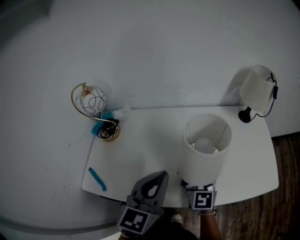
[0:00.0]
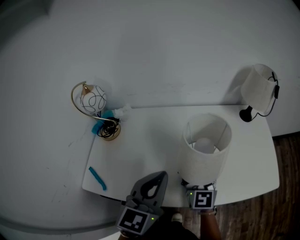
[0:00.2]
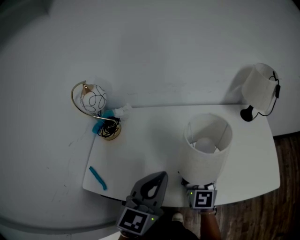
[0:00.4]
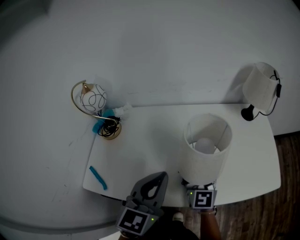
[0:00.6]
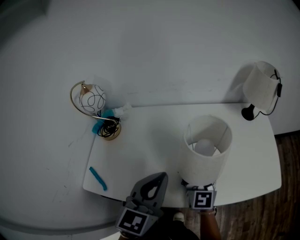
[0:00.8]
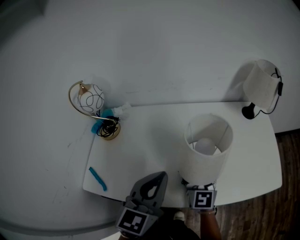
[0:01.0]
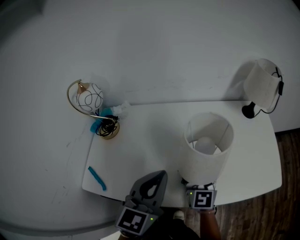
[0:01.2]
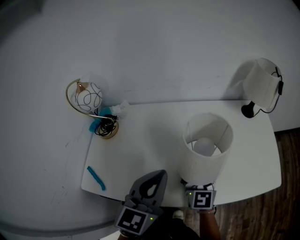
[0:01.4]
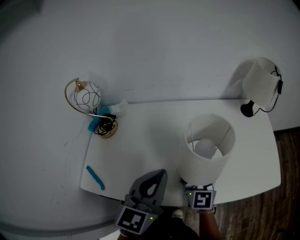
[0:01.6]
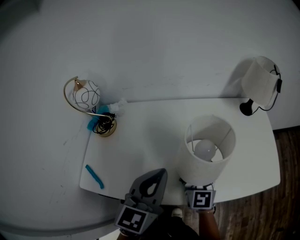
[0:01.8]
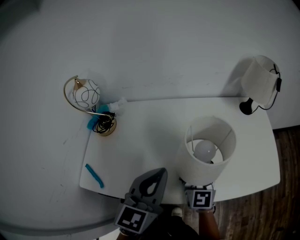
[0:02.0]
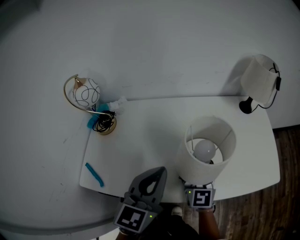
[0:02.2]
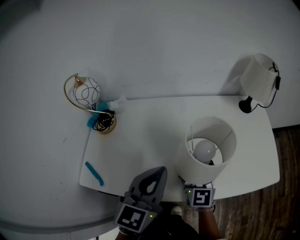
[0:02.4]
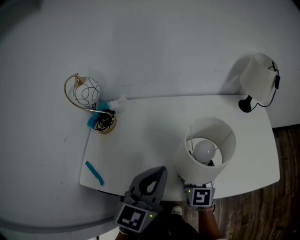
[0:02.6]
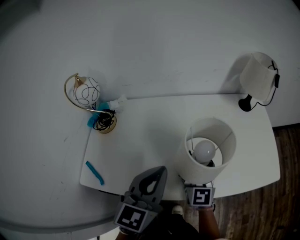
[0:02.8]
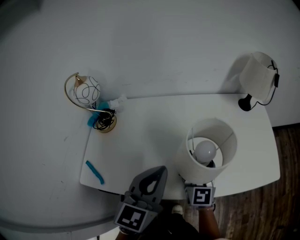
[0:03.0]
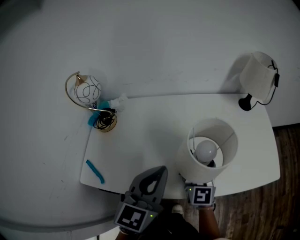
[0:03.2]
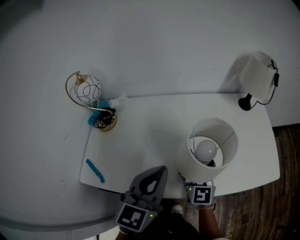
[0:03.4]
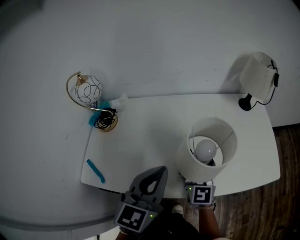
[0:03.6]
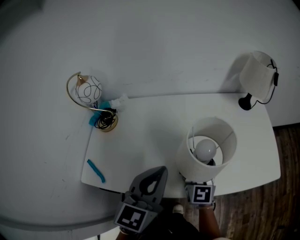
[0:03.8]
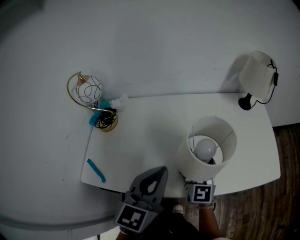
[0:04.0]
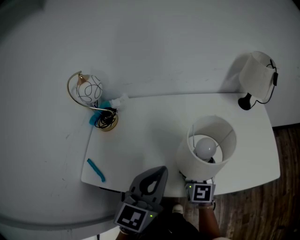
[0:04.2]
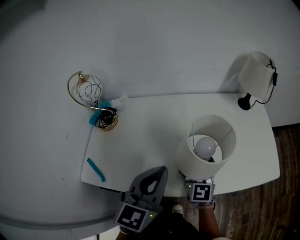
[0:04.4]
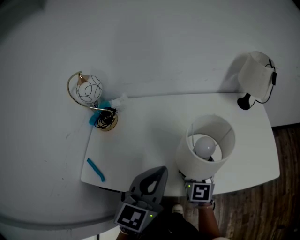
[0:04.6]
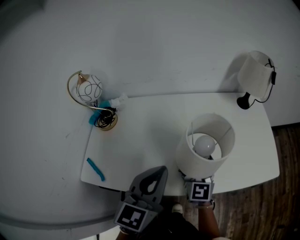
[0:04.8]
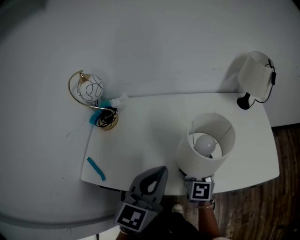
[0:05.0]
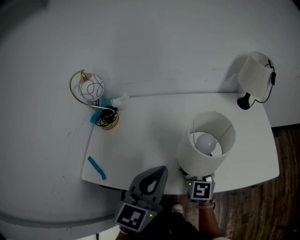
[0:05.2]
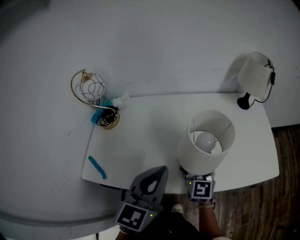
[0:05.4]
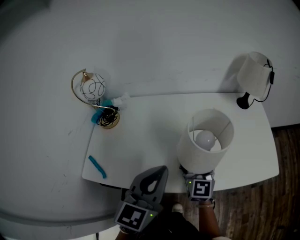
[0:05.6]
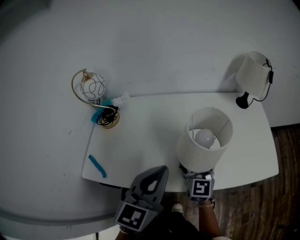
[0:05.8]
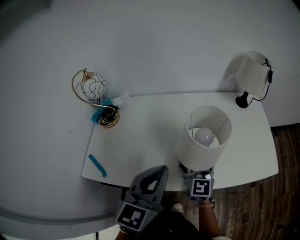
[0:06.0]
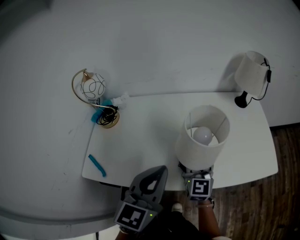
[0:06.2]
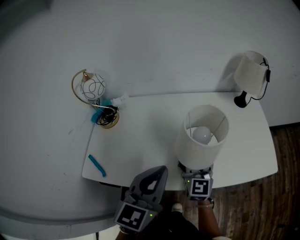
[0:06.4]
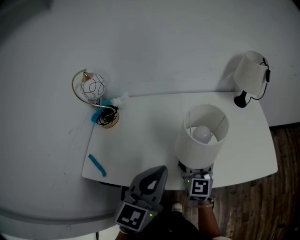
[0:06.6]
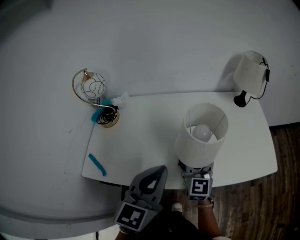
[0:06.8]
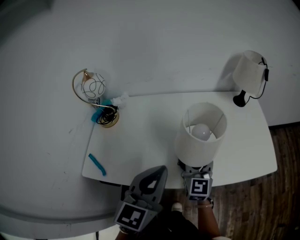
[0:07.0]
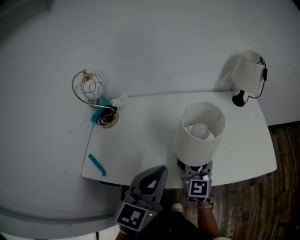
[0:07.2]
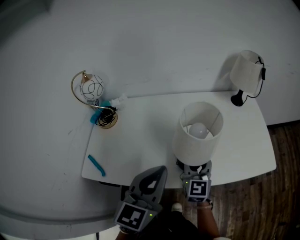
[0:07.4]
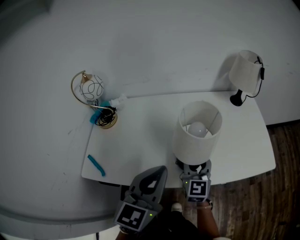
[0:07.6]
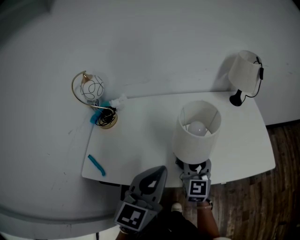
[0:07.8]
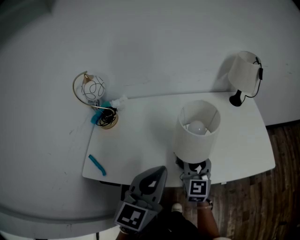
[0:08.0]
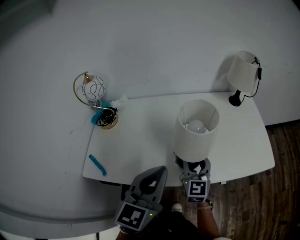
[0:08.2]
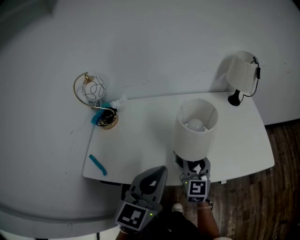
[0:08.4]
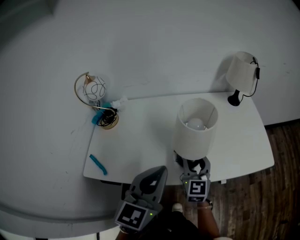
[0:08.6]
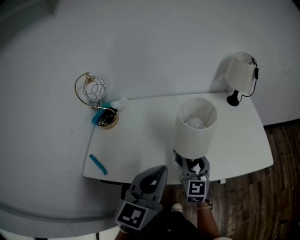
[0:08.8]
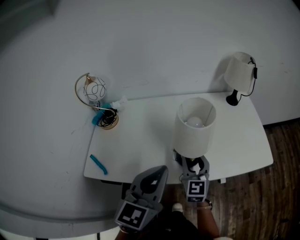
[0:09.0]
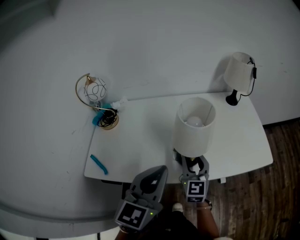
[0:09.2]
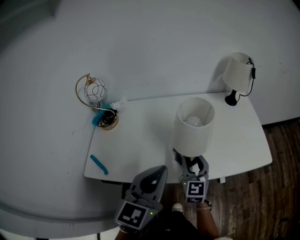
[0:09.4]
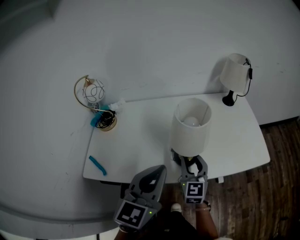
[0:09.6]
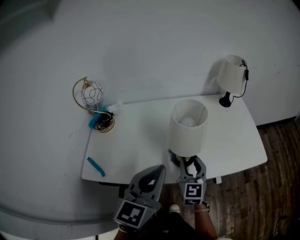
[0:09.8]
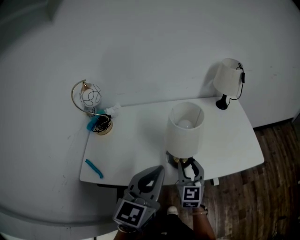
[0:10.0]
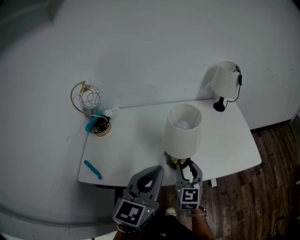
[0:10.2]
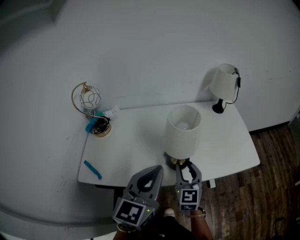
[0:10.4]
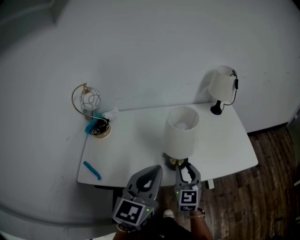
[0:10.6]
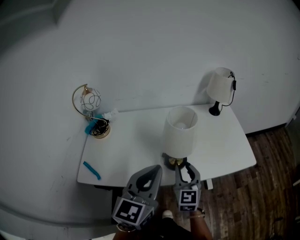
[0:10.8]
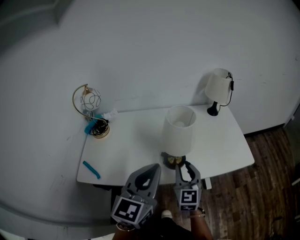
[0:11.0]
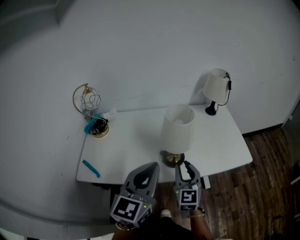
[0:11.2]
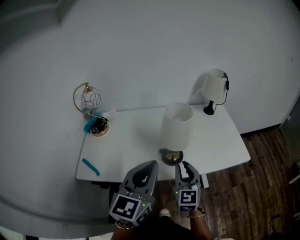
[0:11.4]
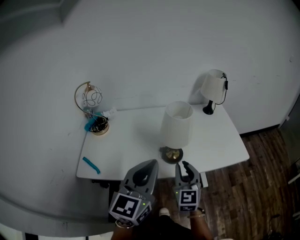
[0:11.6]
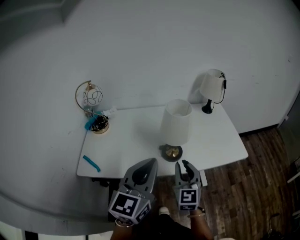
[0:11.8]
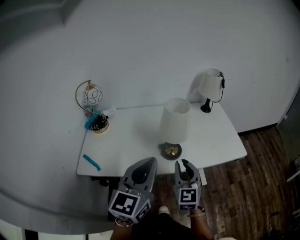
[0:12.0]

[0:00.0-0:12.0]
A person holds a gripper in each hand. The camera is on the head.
0:00.0 to 0:06.0: The grippers make only small movements.
0:06.0 to 0:09.0: The grippers make only small movements.
0:09.0 to 0:10.4: The right gripper ends up approximately 5 cm from where it was.
0:10.4 to 0:12.0: The right gripper shifts about 10 cm backward and upward, while the left gripper shifts some 10 cm backward.

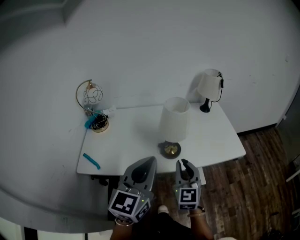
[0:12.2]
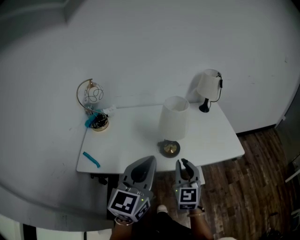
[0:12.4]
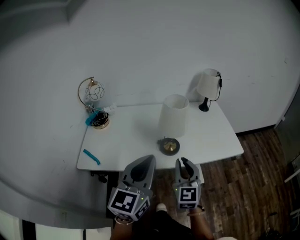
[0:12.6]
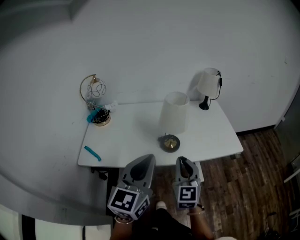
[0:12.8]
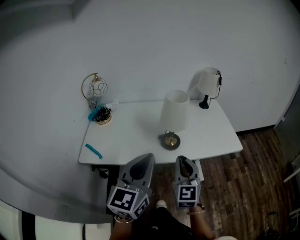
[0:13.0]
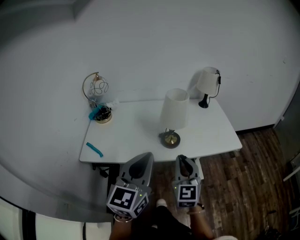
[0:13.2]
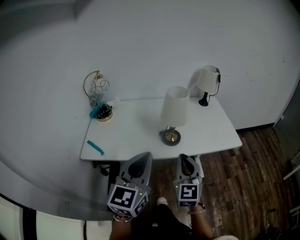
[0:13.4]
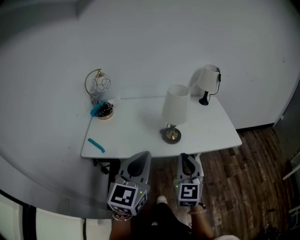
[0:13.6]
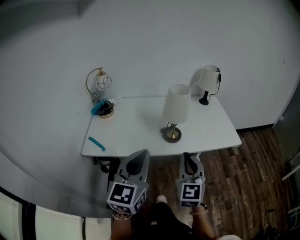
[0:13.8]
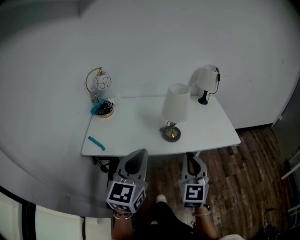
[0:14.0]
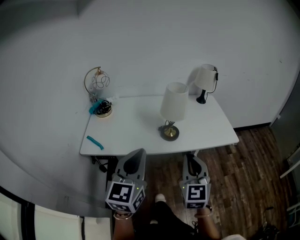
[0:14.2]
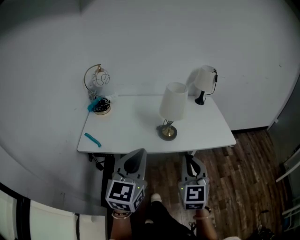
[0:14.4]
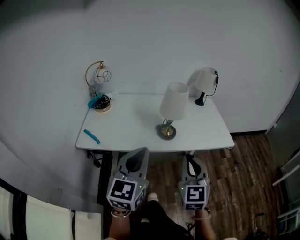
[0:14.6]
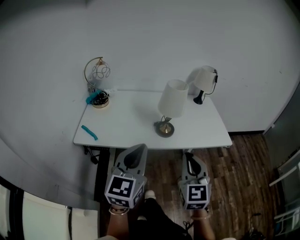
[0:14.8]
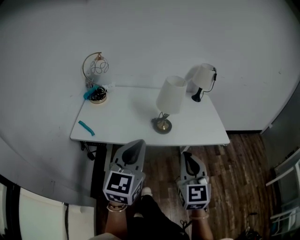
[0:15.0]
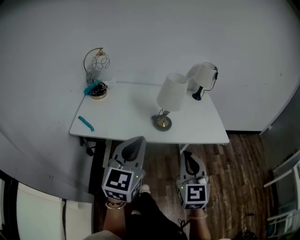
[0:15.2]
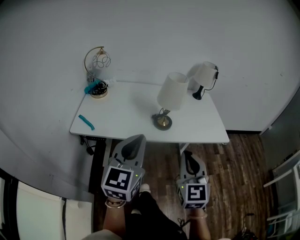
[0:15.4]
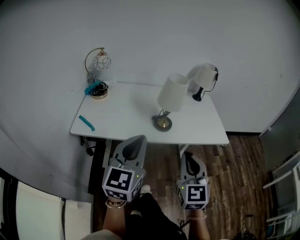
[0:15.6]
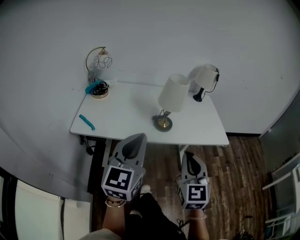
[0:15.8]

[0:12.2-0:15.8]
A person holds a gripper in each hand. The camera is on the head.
0:12.2 to 0:14.0: Both grippers move backward, roughly 10 cm.
0:14.0 to 0:15.8: The right gripper changes place by about 5 cm.

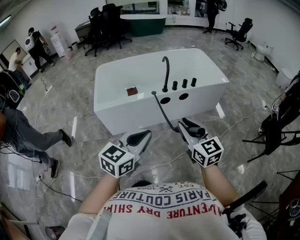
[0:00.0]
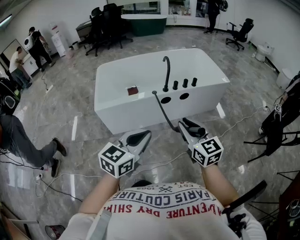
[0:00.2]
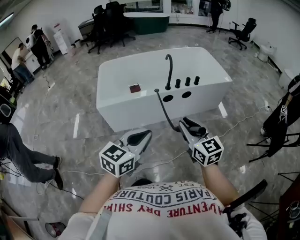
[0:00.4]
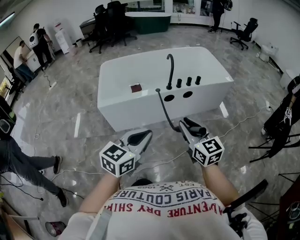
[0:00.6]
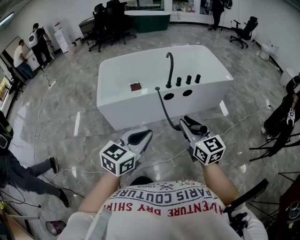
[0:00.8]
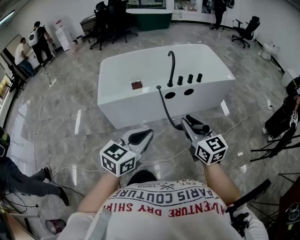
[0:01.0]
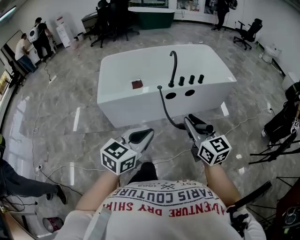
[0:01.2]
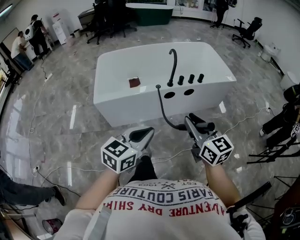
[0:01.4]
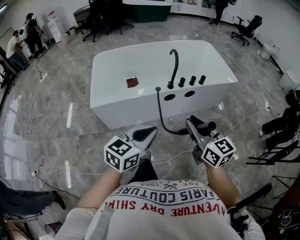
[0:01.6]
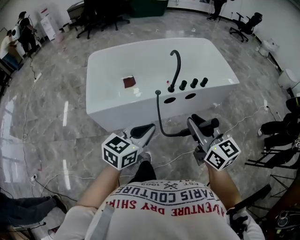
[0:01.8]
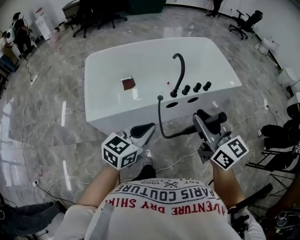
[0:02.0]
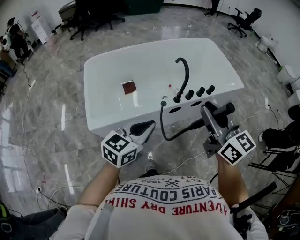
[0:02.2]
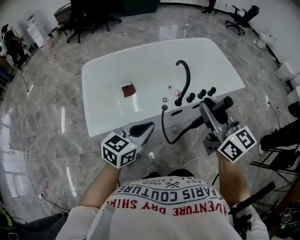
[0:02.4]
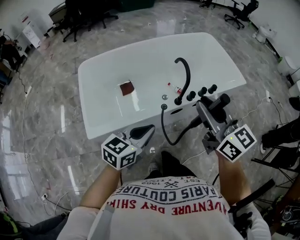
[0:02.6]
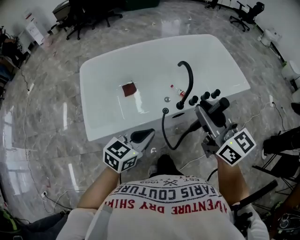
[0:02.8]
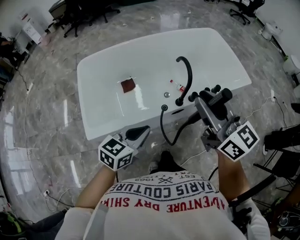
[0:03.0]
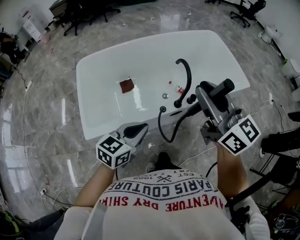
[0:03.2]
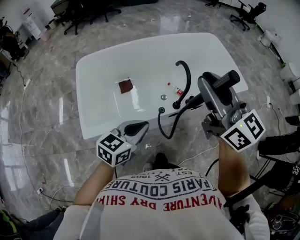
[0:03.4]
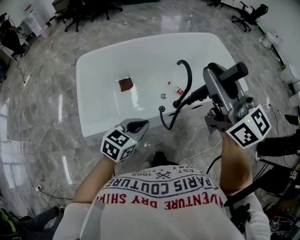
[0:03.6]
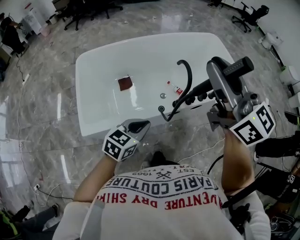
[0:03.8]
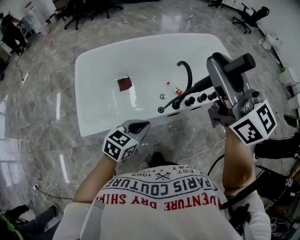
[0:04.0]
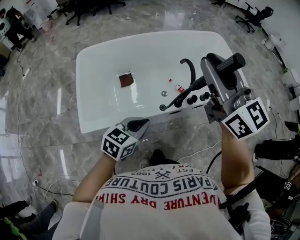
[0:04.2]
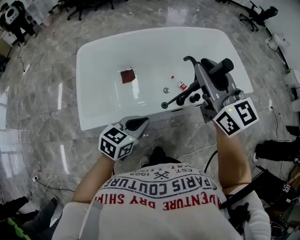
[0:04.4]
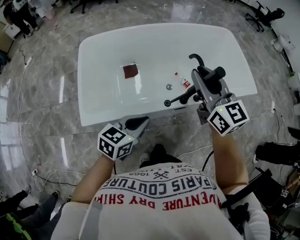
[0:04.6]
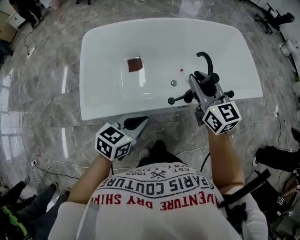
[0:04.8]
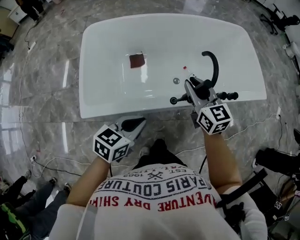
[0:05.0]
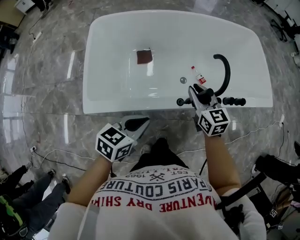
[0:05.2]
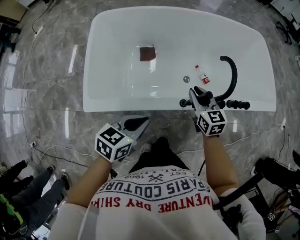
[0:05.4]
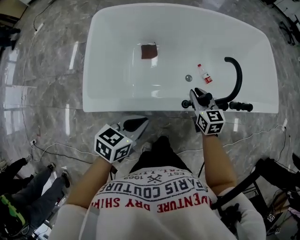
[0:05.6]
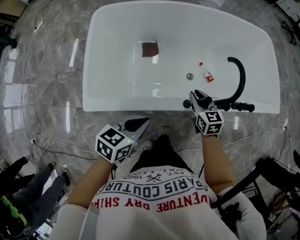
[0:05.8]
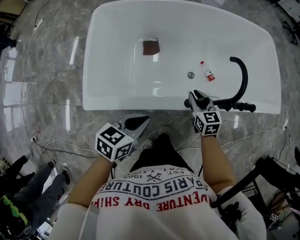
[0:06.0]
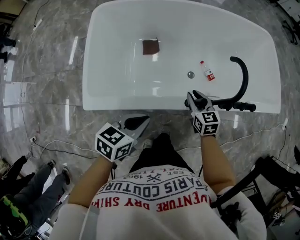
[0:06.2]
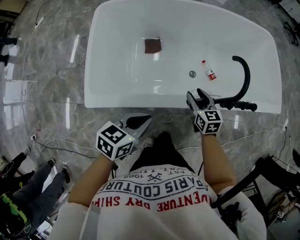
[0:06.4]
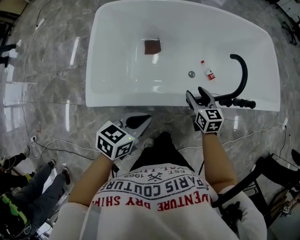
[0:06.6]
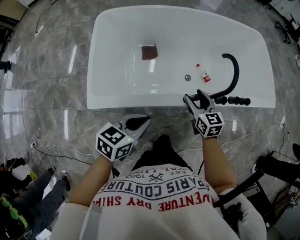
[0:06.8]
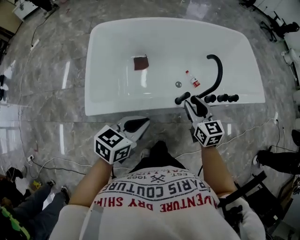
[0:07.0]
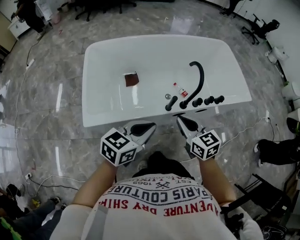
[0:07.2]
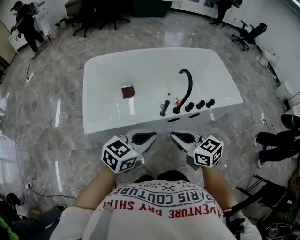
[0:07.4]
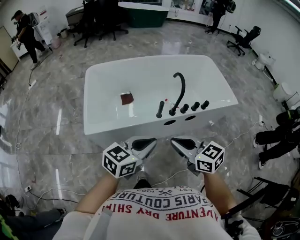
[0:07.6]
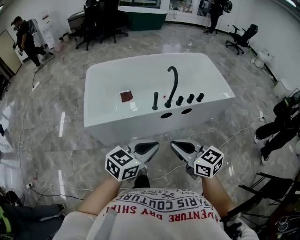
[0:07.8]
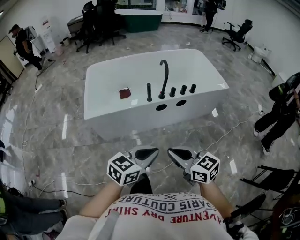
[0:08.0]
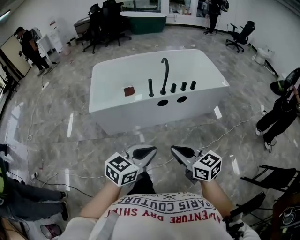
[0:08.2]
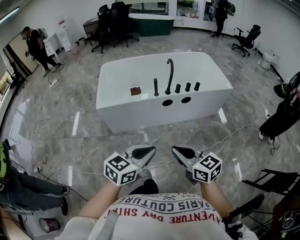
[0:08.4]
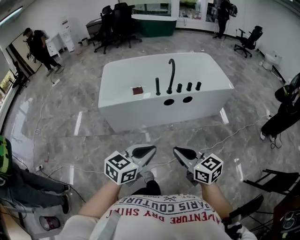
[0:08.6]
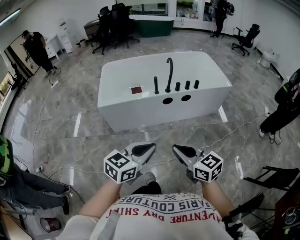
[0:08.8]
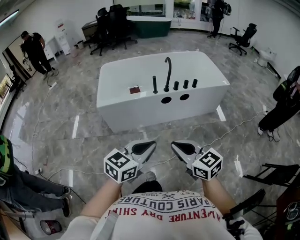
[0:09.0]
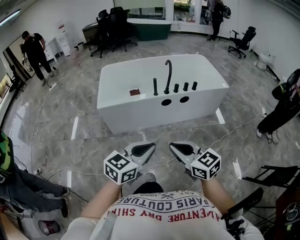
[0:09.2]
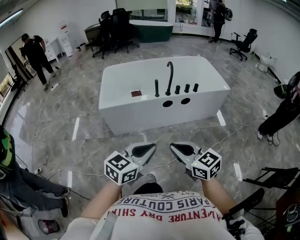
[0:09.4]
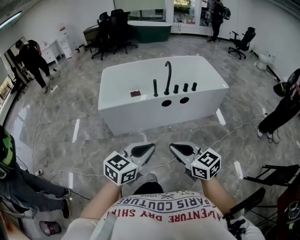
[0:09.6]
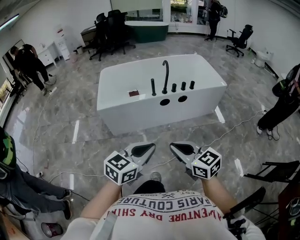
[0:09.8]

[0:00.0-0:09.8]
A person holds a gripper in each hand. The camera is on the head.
0:00.0 to 0:01.4: The left gripper shifts by approximately 5 cm.
0:01.4 to 0:02.8: Both grippers travel together forward and to the left, about 30 cm.
0:02.8 to 0:04.2: The right gripper travels upward and forward by roughly 15 cm. Meanwhile the left gripper ends up some 5 cm from where it was.
0:04.2 to 0:05.6: The right gripper goes about 50 cm downward, and tilts its fingers roughly 40 degrees downward. Meanwhile the left gripper is displaced downward and to the left by some 10 cm, and turns by approximately 20 degrees.
0:05.6 to 0:07.0: The right gripper travels upward and backward by approximately 10 cm, and opens, then closes once more; the left gripper heads upward, covering approximately 5 cm.
0:07.0 to 0:08.4: The pair of grippers is taken backward, approximately 50 cm. The right gripper changes its angle by roughly 20 degrees, and closes its fingers.
0:08.4 to 0:09.8: The grippers both shift backward by some 5 cm.
